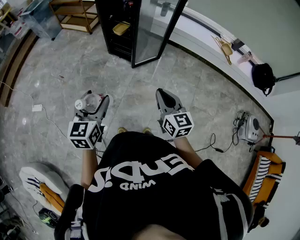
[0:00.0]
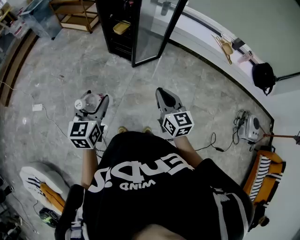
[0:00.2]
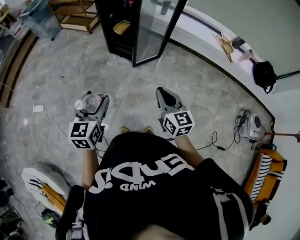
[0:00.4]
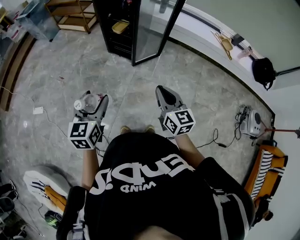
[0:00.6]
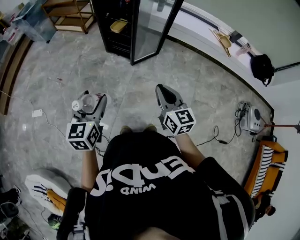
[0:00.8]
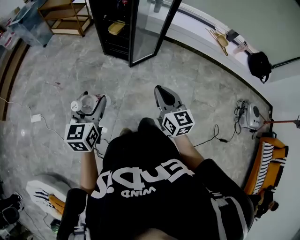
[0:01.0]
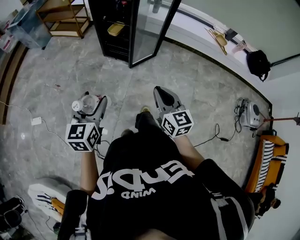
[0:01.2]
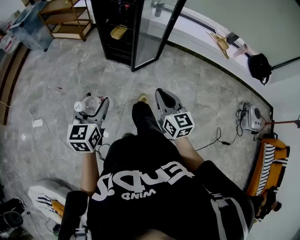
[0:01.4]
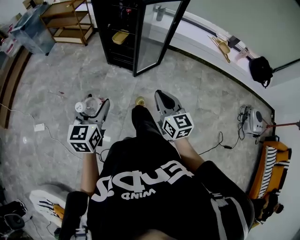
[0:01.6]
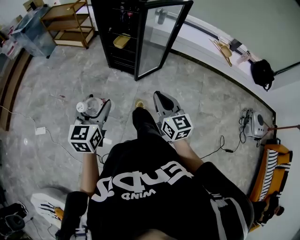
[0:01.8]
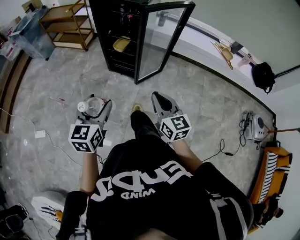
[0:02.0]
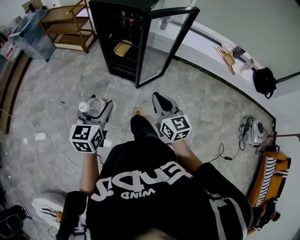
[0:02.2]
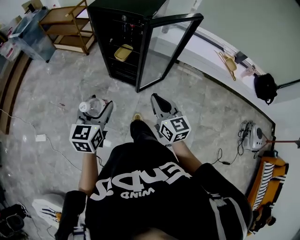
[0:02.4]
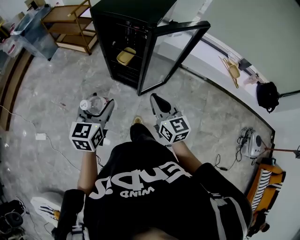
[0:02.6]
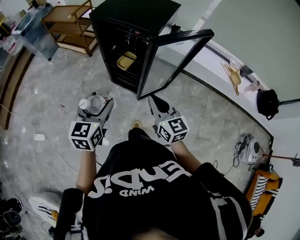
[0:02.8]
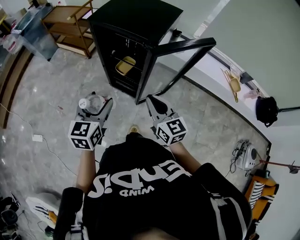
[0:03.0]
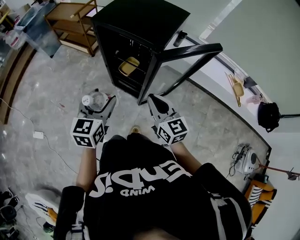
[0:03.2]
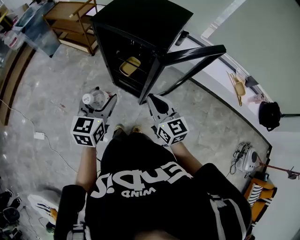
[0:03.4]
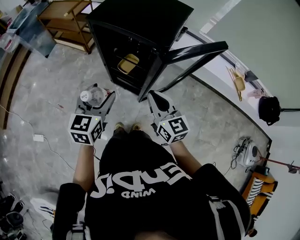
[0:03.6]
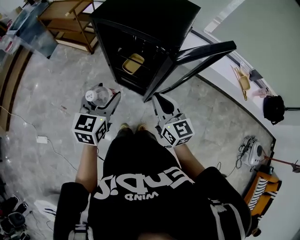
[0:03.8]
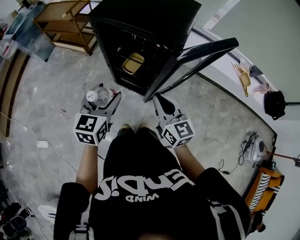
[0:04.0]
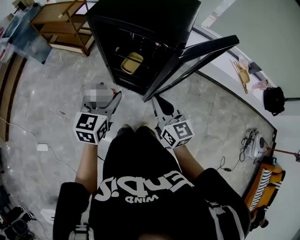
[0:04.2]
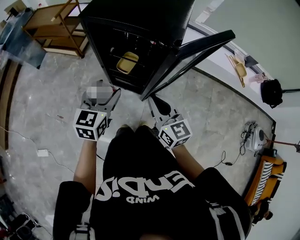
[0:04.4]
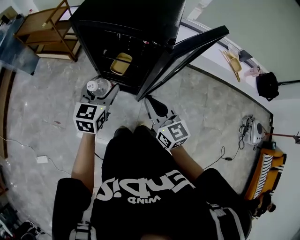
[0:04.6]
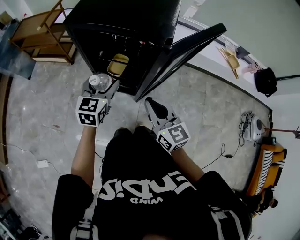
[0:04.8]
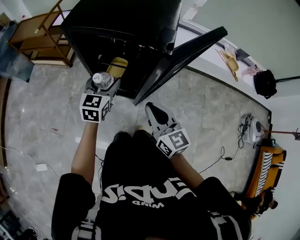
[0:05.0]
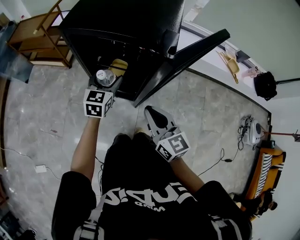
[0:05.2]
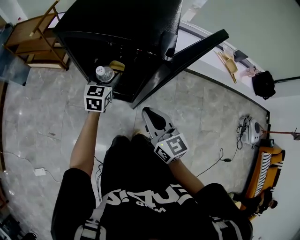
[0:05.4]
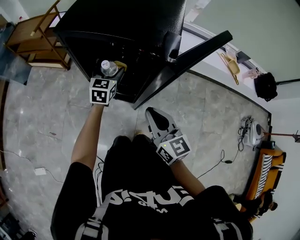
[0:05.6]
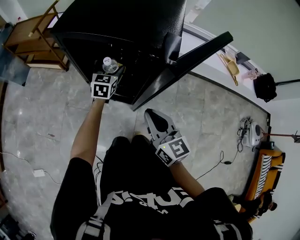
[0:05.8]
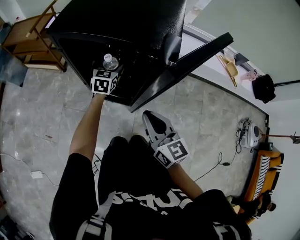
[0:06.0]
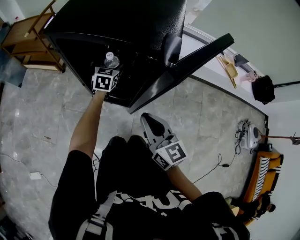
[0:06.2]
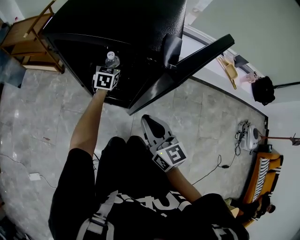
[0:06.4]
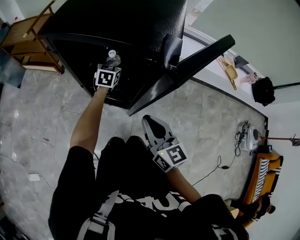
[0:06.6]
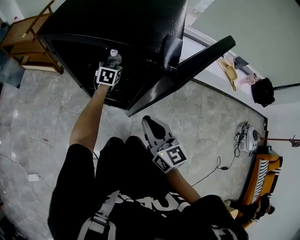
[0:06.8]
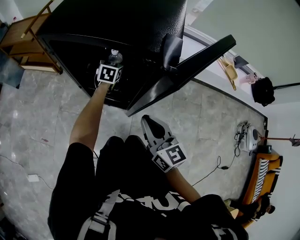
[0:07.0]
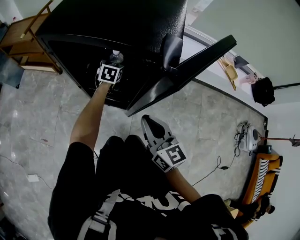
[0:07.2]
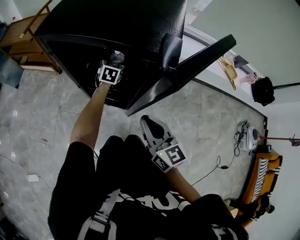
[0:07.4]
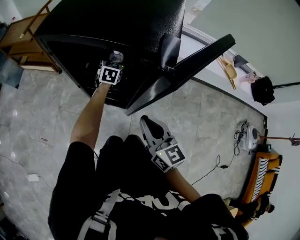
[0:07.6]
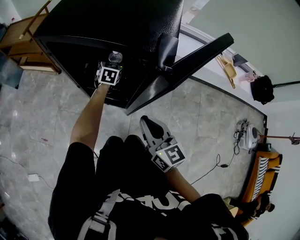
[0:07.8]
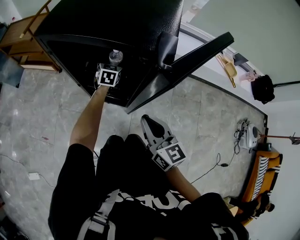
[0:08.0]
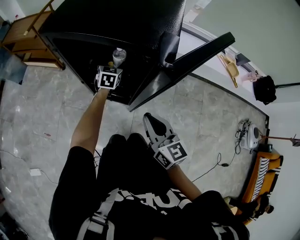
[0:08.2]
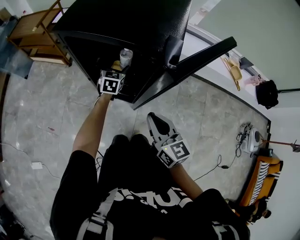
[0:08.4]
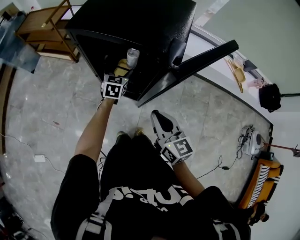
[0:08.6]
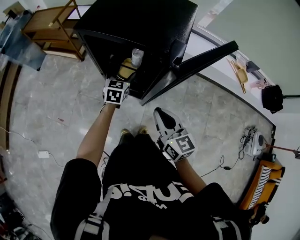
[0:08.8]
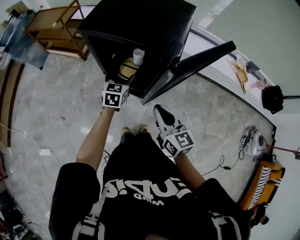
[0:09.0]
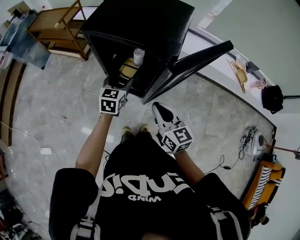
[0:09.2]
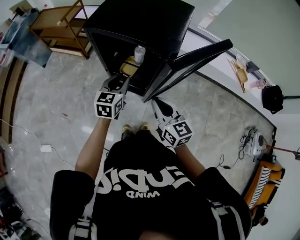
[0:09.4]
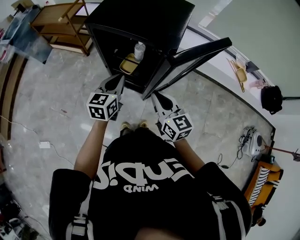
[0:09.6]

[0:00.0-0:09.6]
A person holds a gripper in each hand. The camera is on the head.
0:00.0 to 0:01.6: Both grippers travel together to the left and forward, roughly 10 cm.
0:01.6 to 0:03.2: Both grippers move forward, about 35 cm.
0:03.2 to 0:04.8: The right gripper heads downward and to the left, covering roughly 10 cm, while the left gripper shifts roughly 20 cm forward and downward.
0:04.8 to 0:06.4: The left gripper heads forward and downward, covering approximately 25 cm. Meanwhile the right gripper is displaced downward by about 5 cm.
0:06.4 to 0:08.0: There are only small adjustments of the grippers.
0:08.0 to 0:09.6: The right gripper heads upward, covering about 10 cm, while the left gripper shifts approximately 35 cm backward and upward, and closes.

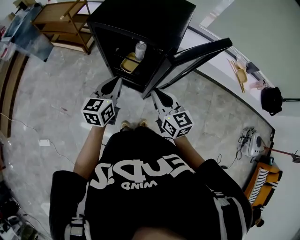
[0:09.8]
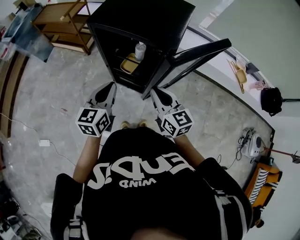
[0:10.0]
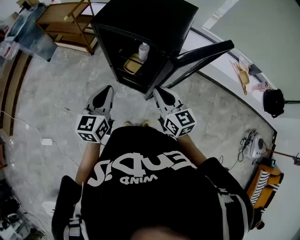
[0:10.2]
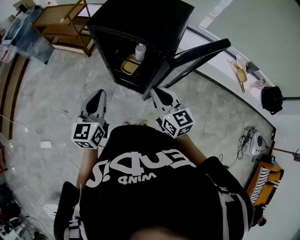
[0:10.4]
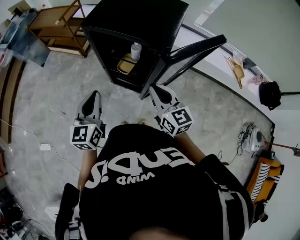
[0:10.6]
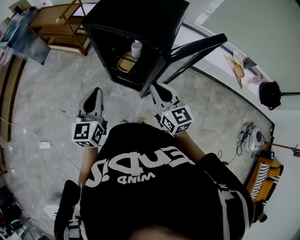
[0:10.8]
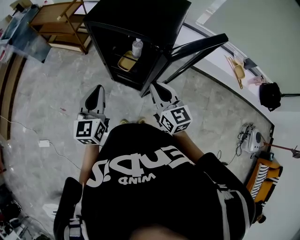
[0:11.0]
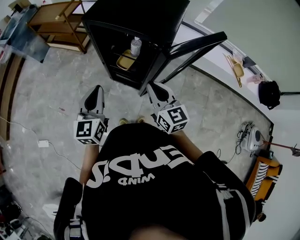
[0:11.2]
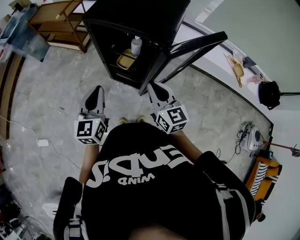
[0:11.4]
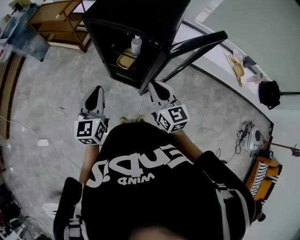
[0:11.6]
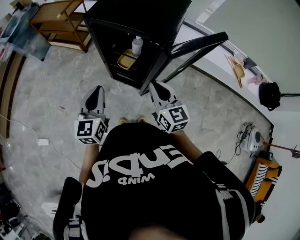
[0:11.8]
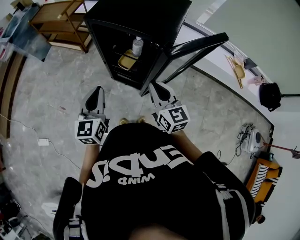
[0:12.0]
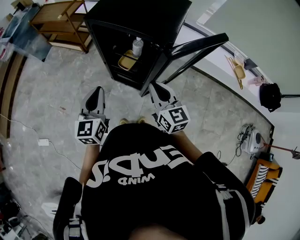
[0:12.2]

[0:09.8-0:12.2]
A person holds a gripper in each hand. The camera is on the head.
0:09.8 to 0:11.0: The left gripper travels to the left by approximately 5 cm.
0:11.0 to 0:12.2: The grippers move only a little.

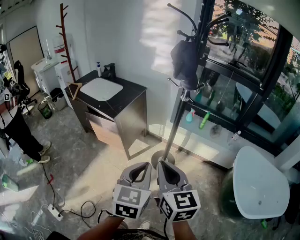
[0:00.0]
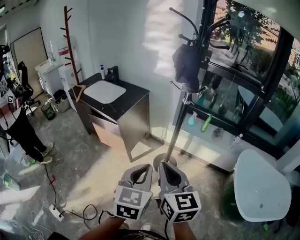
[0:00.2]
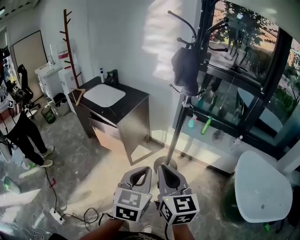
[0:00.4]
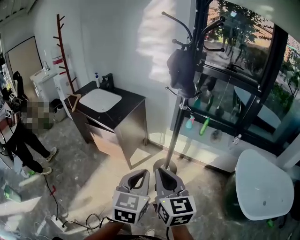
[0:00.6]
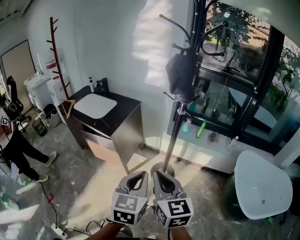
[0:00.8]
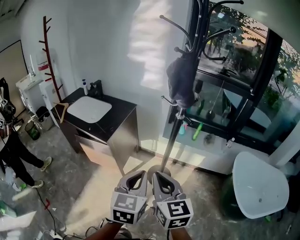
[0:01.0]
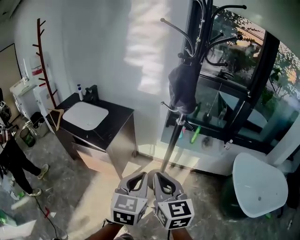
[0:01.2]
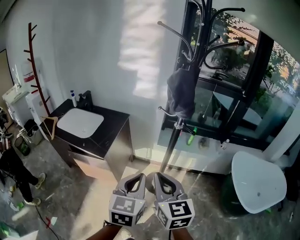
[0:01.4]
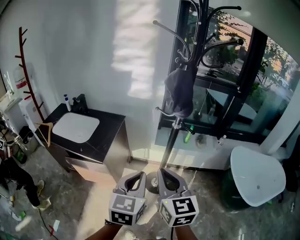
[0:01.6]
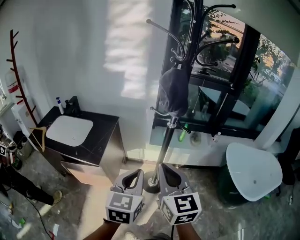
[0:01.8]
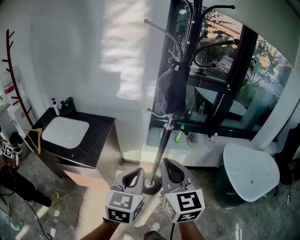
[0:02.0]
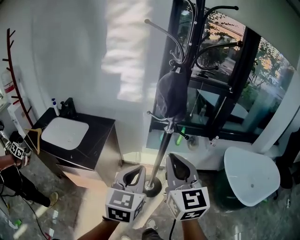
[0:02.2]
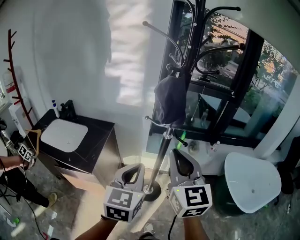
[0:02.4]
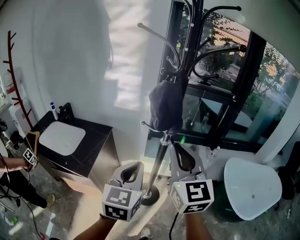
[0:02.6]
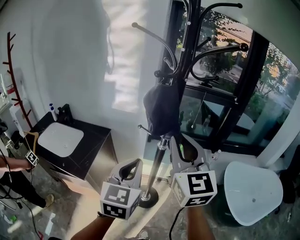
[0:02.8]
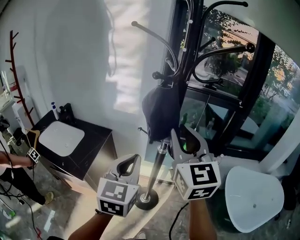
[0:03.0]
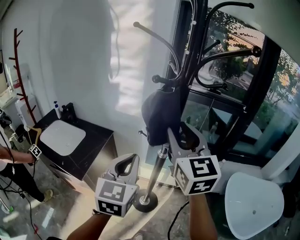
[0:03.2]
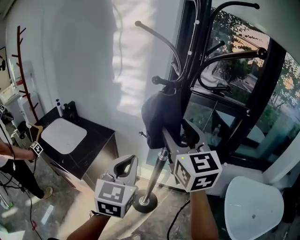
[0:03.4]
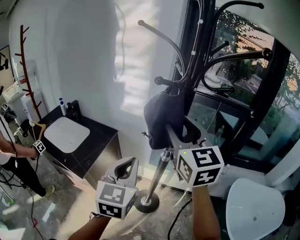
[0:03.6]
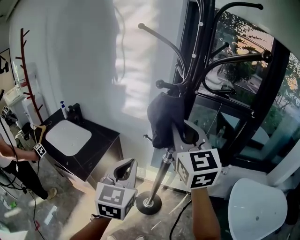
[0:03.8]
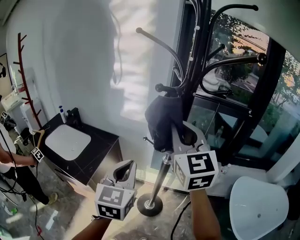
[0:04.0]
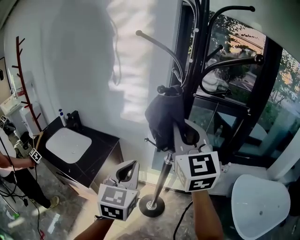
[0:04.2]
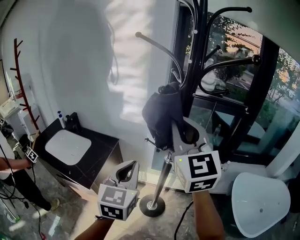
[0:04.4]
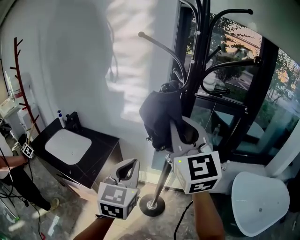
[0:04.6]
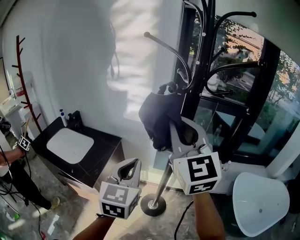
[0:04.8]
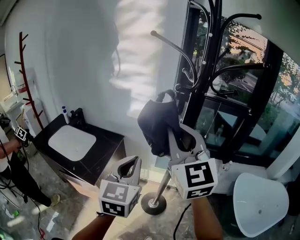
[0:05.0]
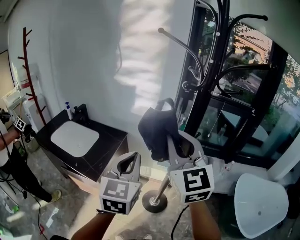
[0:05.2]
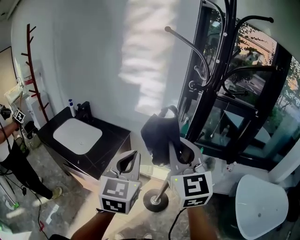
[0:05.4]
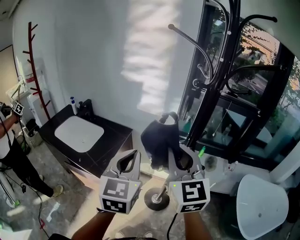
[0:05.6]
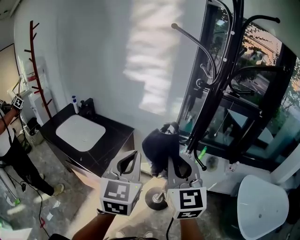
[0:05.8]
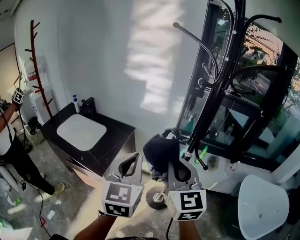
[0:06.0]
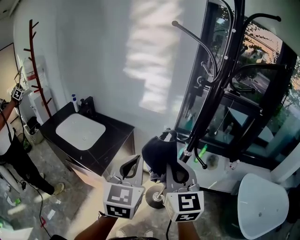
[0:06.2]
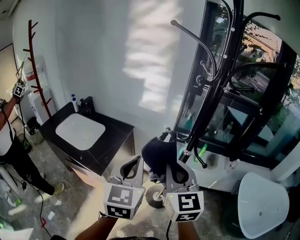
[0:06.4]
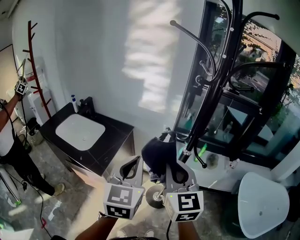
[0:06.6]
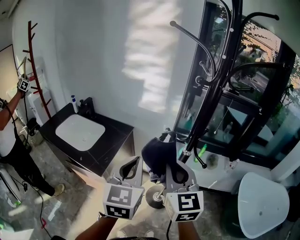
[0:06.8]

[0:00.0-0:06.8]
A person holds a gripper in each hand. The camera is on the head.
0:00.0 to 0:01.4: The two grippers go roughly 15 cm forward and to the left.
0:01.4 to 0:02.8: The left gripper travels forward and upward by approximately 20 cm. The right gripper travels forward, upward and to the right by approximately 25 cm, and swivels roughly 20 degrees.
0:02.8 to 0:04.0: The right gripper goes some 10 cm forward, and opens, then closes once more. Meanwhile the left gripper moves roughly 5 cm.
0:04.0 to 0:05.4: The left gripper heads to the left, covering about 5 cm, while the right gripper is displaced to the left and backward by roughly 10 cm.
0:05.4 to 0:06.8: The right gripper moves downward, roughly 10 cm.

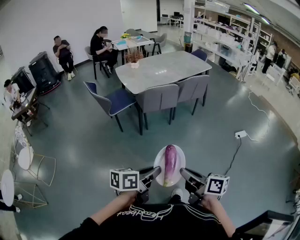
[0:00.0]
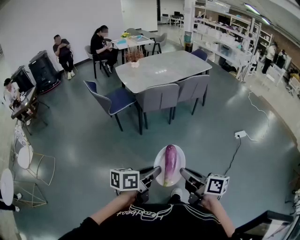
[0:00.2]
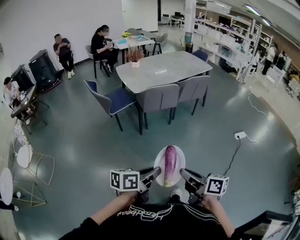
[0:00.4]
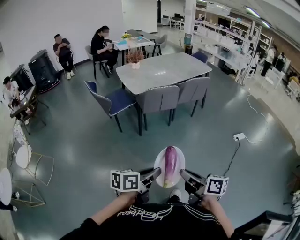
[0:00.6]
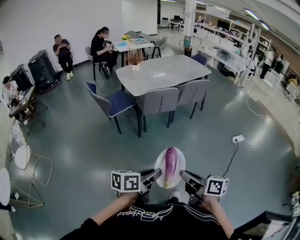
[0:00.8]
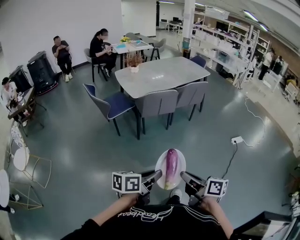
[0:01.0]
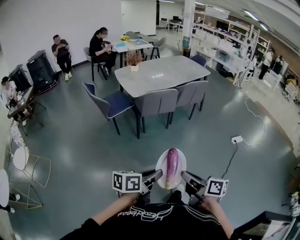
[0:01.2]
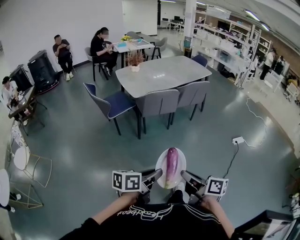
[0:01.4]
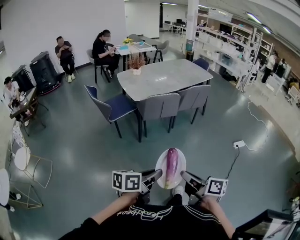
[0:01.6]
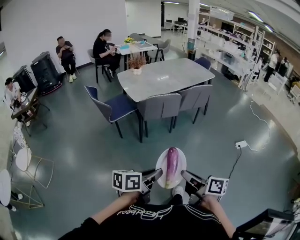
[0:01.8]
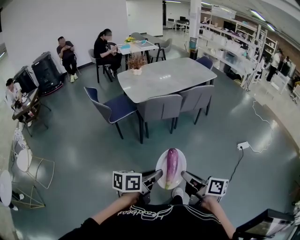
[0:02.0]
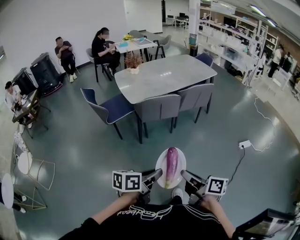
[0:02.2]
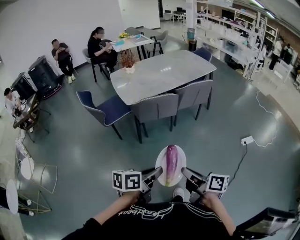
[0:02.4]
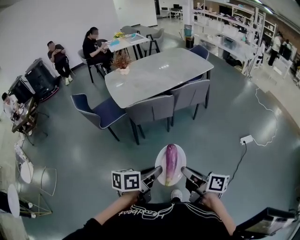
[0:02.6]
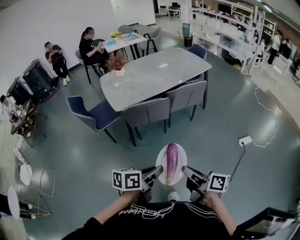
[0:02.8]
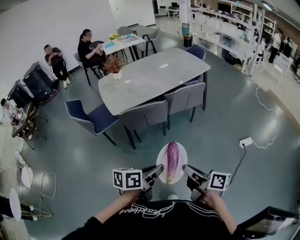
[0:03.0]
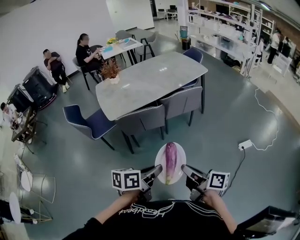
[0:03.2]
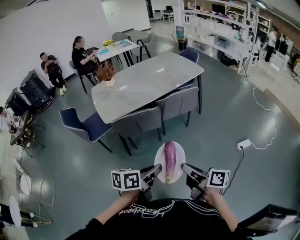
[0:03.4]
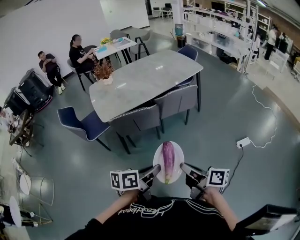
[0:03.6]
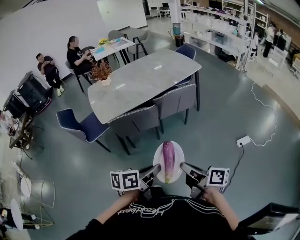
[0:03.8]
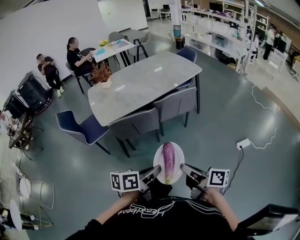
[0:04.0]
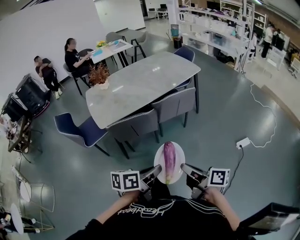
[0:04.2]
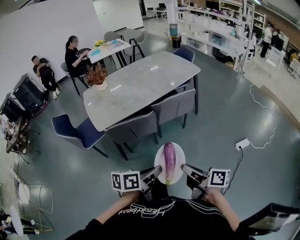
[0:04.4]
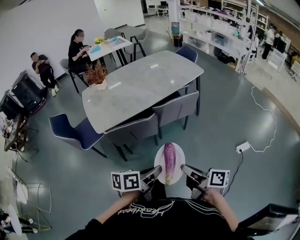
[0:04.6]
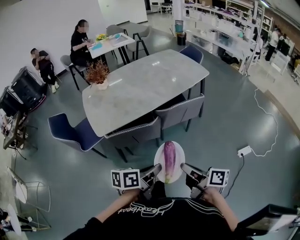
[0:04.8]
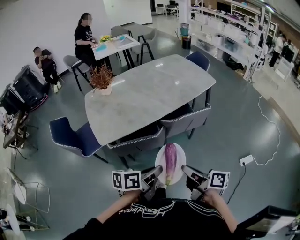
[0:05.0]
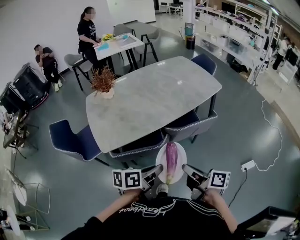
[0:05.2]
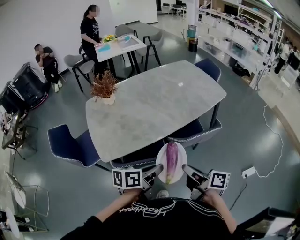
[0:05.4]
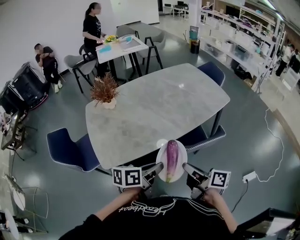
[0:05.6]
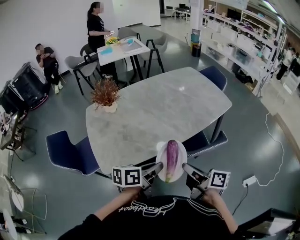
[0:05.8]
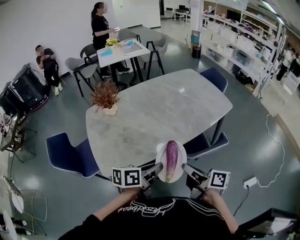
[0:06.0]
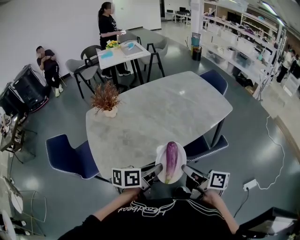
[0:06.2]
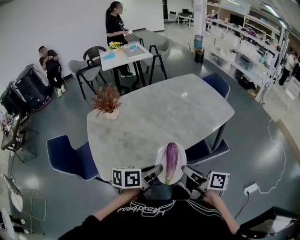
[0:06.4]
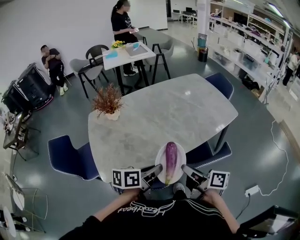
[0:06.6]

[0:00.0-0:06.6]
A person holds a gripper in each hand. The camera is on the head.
0:00.0 to 0:01.6: The grippers make only small movements.
0:01.6 to 0:03.2: Both grippers move forward and to the right, some 35 cm.
0:03.2 to 0:05.0: The two grippers go roughly 25 cm forward.
0:05.0 to 0:06.6: Both grippers move forward, roughly 30 cm.
